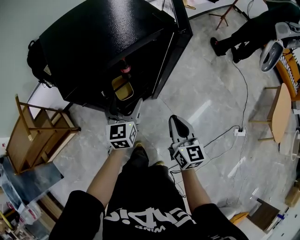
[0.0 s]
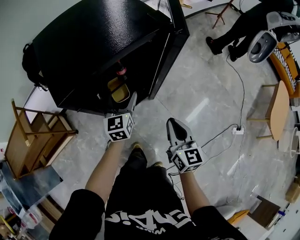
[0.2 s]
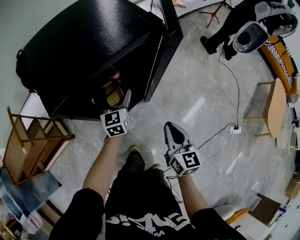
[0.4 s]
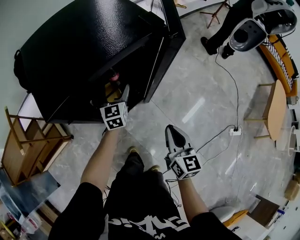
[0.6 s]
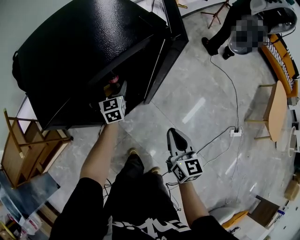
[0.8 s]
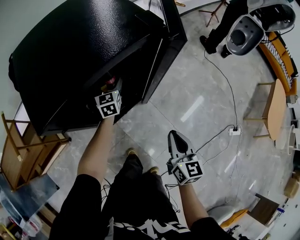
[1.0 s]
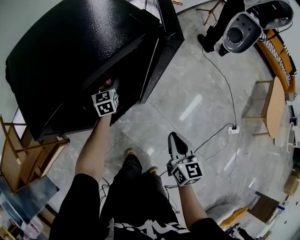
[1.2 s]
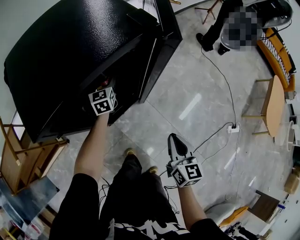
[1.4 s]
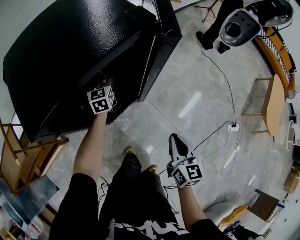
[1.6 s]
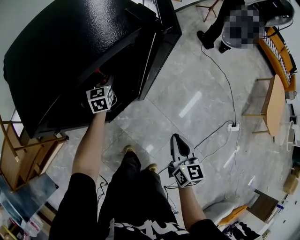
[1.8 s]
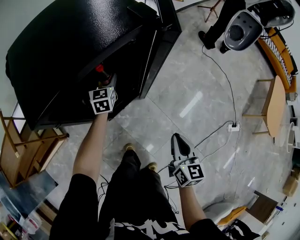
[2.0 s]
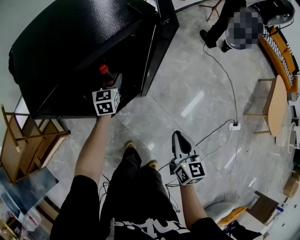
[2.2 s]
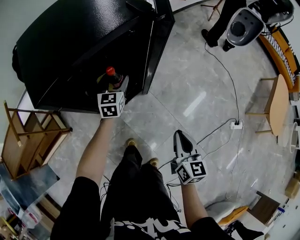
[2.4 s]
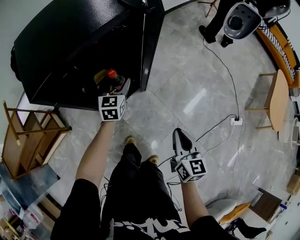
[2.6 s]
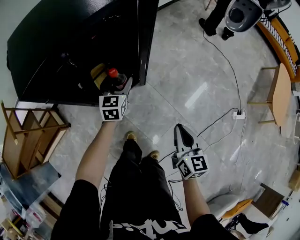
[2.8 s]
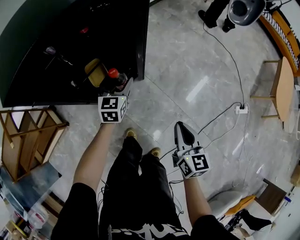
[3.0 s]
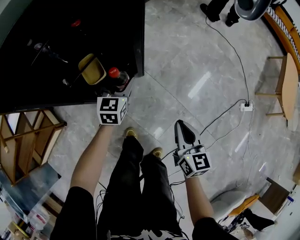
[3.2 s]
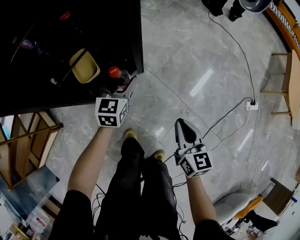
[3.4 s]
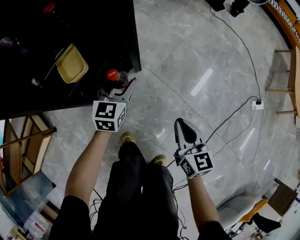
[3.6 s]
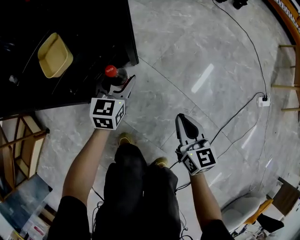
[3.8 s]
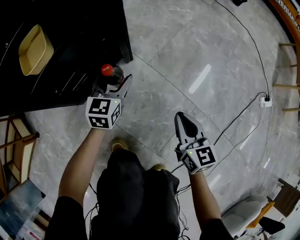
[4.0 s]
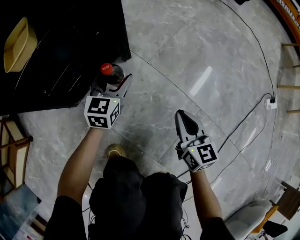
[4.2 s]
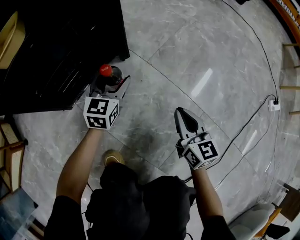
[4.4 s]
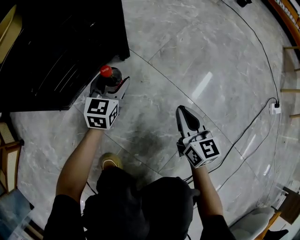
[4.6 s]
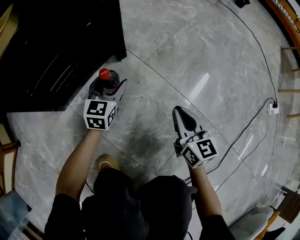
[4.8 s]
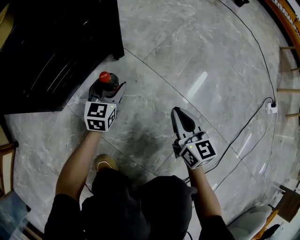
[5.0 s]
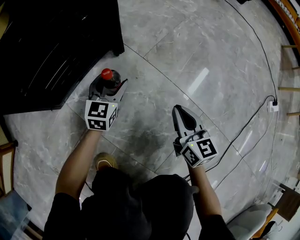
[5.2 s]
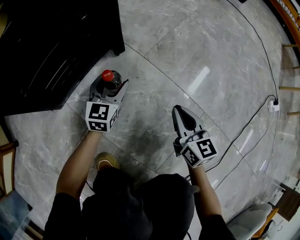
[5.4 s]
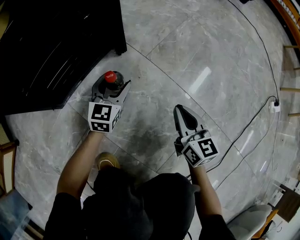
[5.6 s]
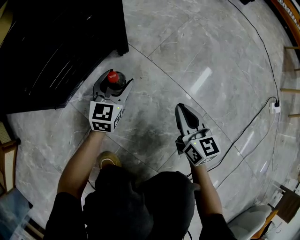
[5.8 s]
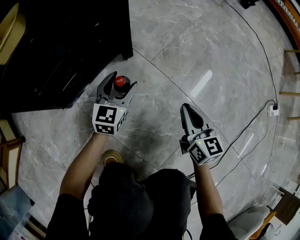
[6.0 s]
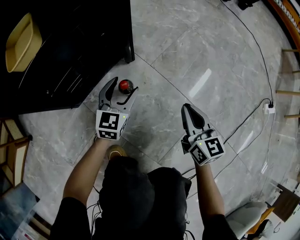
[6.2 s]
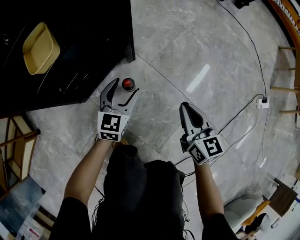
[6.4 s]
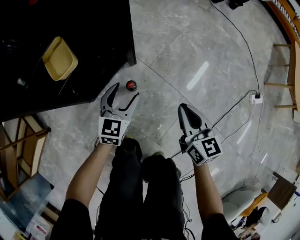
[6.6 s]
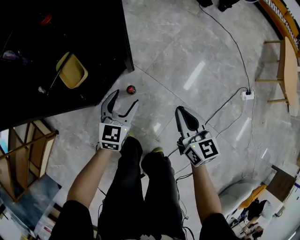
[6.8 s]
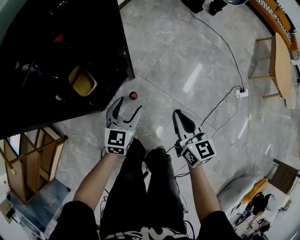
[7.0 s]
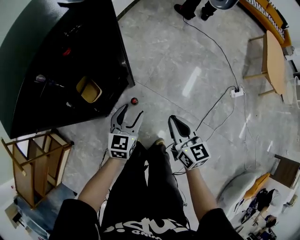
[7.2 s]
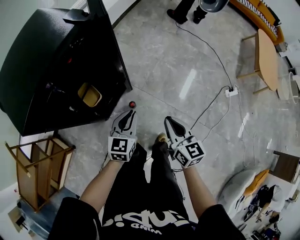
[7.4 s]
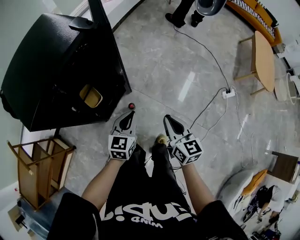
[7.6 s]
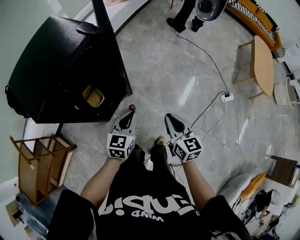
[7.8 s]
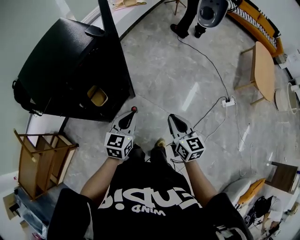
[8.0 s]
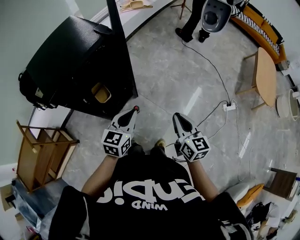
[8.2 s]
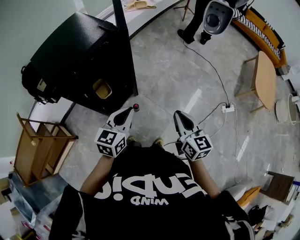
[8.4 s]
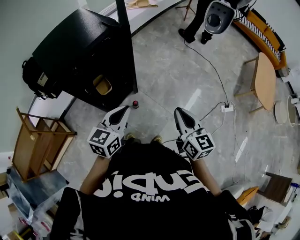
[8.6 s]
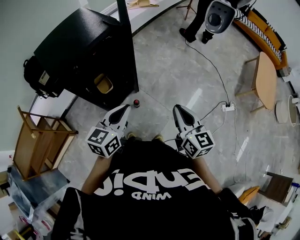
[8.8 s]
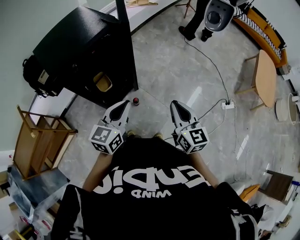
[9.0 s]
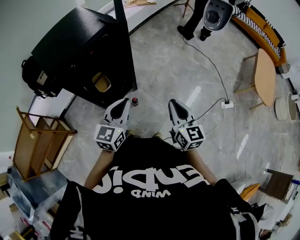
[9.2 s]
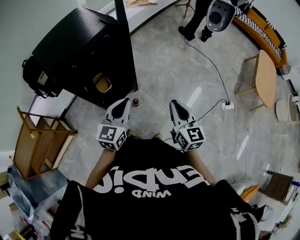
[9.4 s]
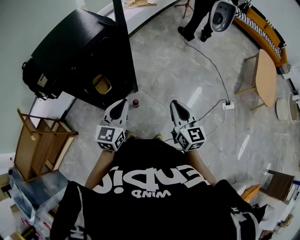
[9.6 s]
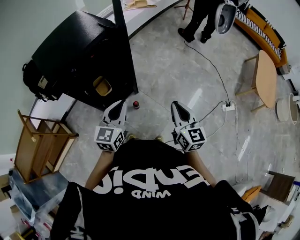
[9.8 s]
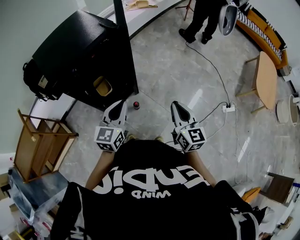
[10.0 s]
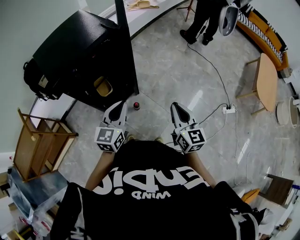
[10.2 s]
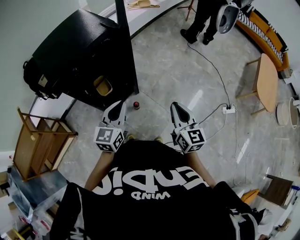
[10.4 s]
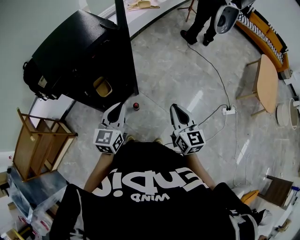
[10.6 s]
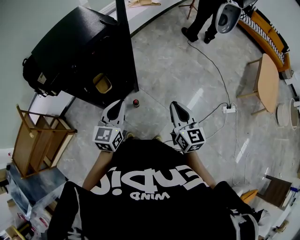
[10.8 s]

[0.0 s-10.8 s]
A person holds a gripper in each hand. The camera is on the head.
0.0 to 1.6 s: The left gripper heads forward and downward, covering some 25 cm, while the right gripper shifts about 10 cm downward and to the right.
1.6 to 3.0 s: The right gripper is displaced backward and to the right by roughly 10 cm. Meanwhile the left gripper is displaced backward and to the right by about 20 cm.
3.0 to 4.6 s: Both grippers move downward, some 60 cm.
4.6 to 6.2 s: The grippers both shift upward by about 10 cm.
6.2 to 7.8 s: The grippers both shift upward by about 60 cm. The left gripper closes its fingers.
7.8 to 9.2 s: The left gripper shifts roughly 15 cm upward and backward. The right gripper goes roughly 10 cm upward.
9.2 to 10.8 s: The grippers move only a little.

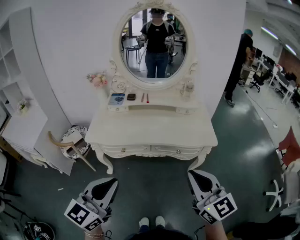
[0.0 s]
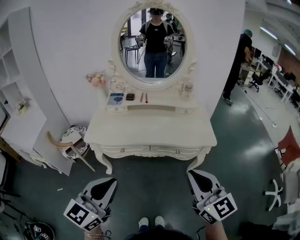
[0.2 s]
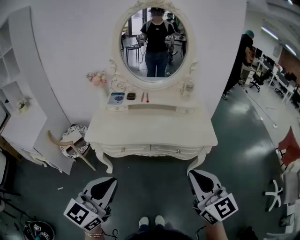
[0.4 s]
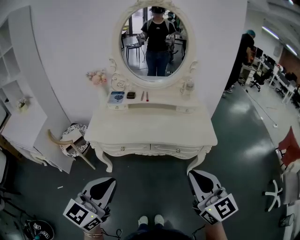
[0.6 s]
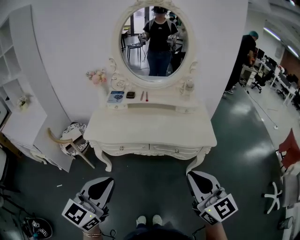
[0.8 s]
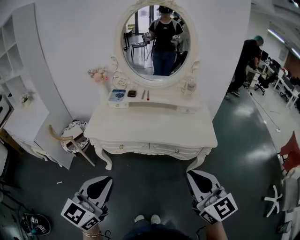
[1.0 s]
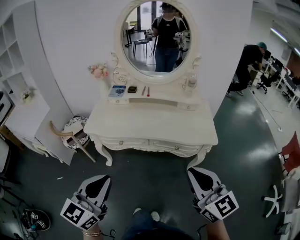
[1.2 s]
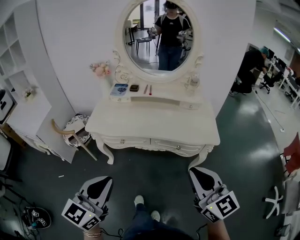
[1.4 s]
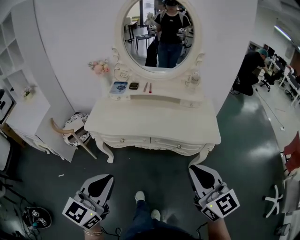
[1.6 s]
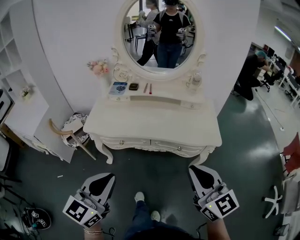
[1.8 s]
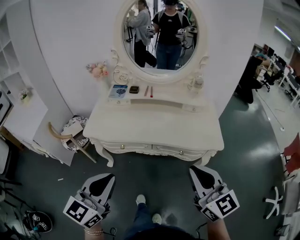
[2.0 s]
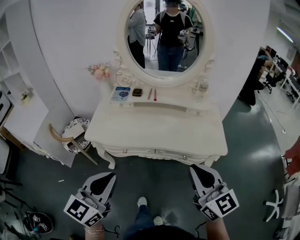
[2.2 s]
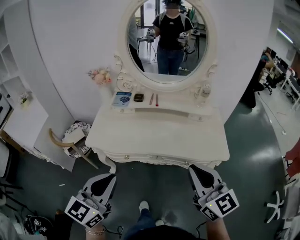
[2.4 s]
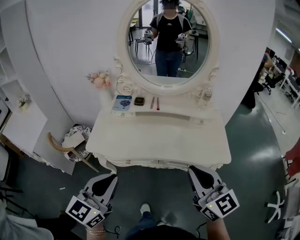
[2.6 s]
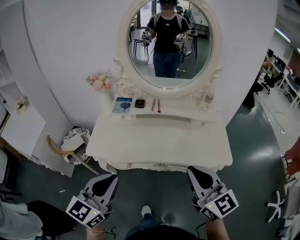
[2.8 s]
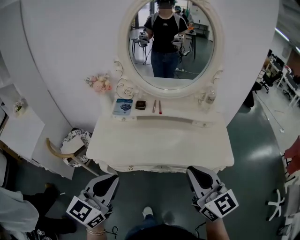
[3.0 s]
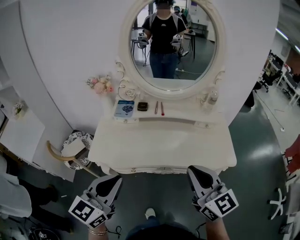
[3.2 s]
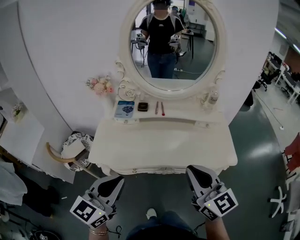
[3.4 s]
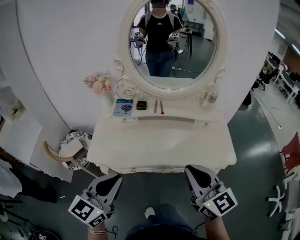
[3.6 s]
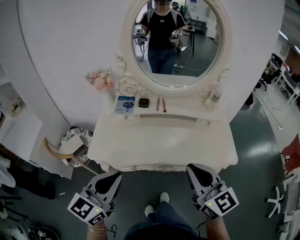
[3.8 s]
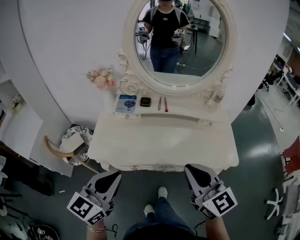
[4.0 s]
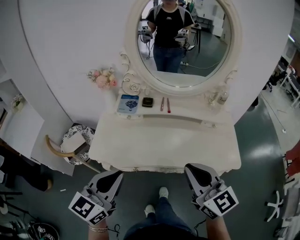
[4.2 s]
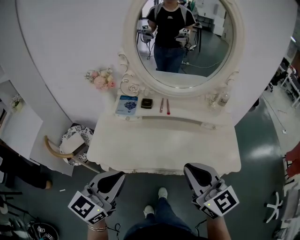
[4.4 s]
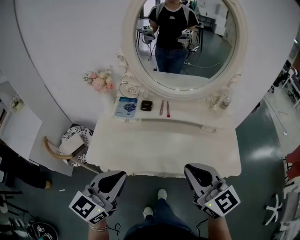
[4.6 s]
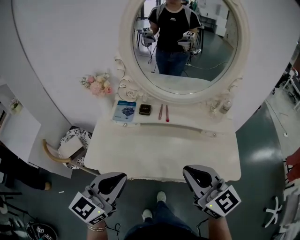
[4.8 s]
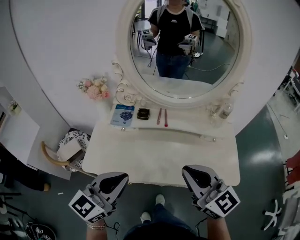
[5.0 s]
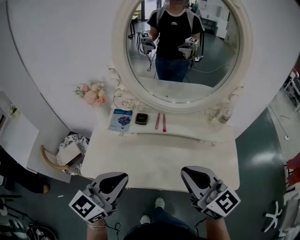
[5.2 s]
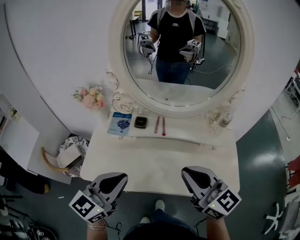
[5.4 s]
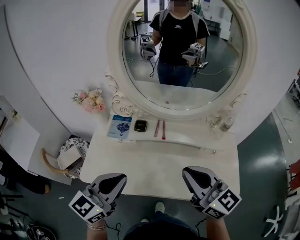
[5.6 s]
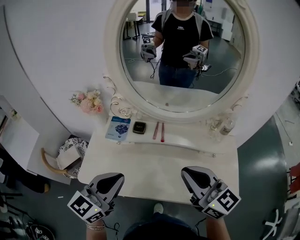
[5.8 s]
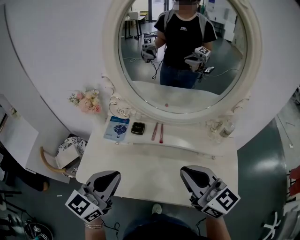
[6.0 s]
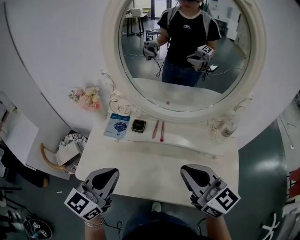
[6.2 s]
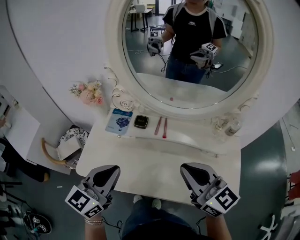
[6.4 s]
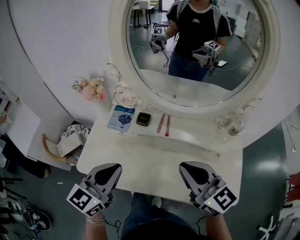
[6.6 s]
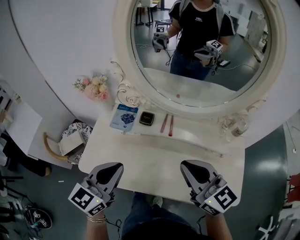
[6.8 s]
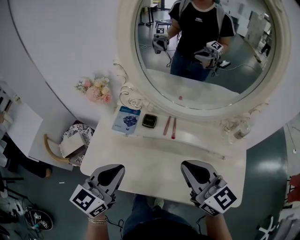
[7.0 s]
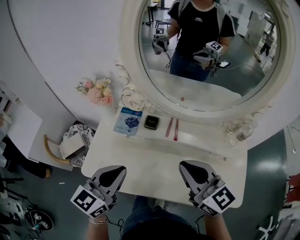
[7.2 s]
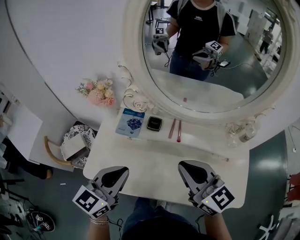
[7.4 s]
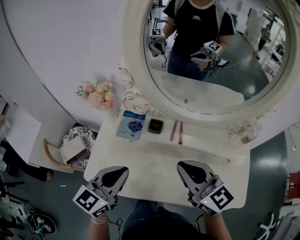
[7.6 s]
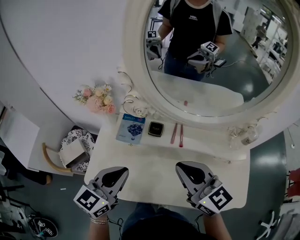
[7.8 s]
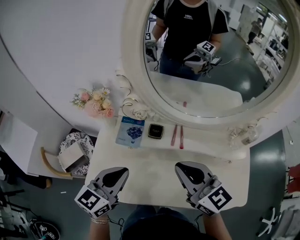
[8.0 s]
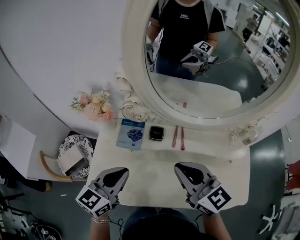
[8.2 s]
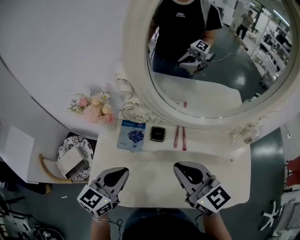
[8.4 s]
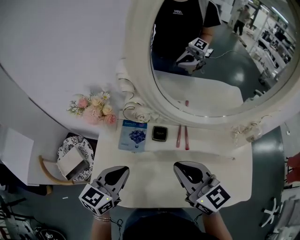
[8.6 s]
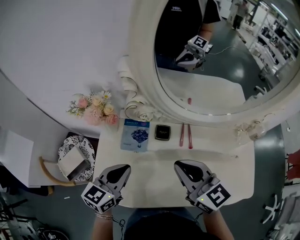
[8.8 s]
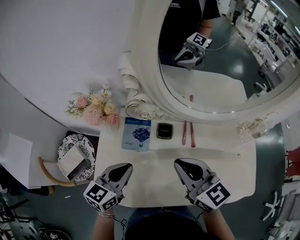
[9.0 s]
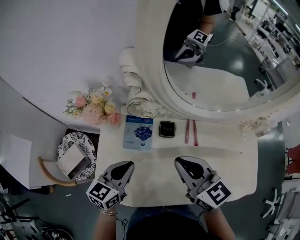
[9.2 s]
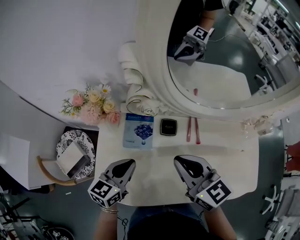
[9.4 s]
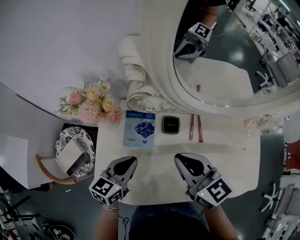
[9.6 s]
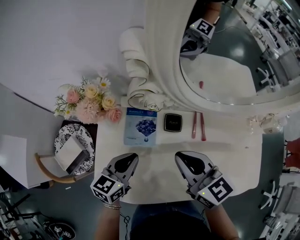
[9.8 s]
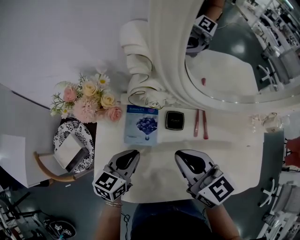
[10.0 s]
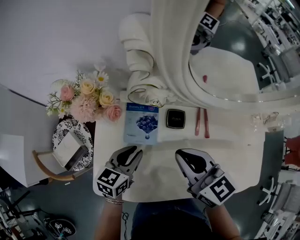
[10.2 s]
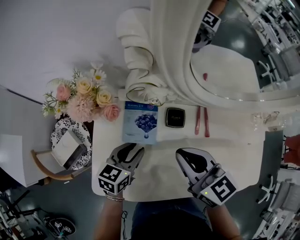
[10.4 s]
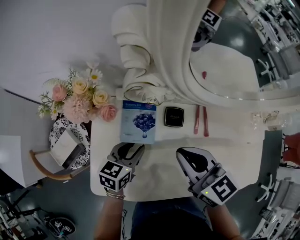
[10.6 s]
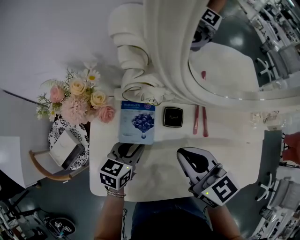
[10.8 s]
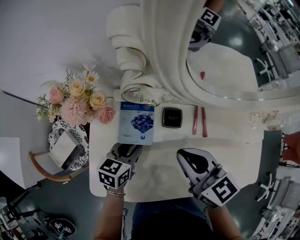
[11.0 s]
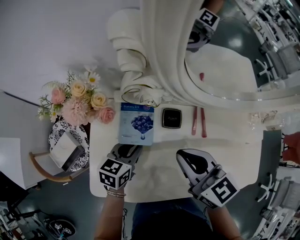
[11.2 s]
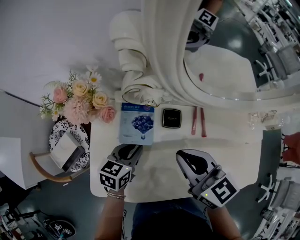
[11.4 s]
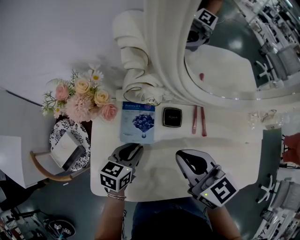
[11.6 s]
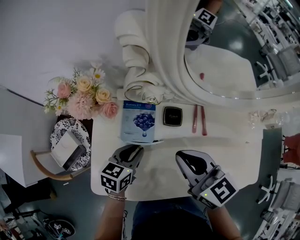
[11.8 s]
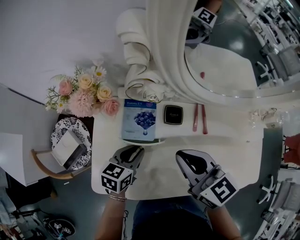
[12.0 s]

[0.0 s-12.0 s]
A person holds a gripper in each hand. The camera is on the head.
0.0 to 1.6 s: The grippers move only a little.
1.6 to 3.0 s: The right gripper heads forward and to the left, covering some 20 cm, while the left gripper shifts some 20 cm forward.
3.0 to 4.4 s: The two grippers go roughly 5 cm forward.
4.4 to 6.0 s: The two grippers go about 15 cm forward.
6.0 to 7.6 s: The right gripper goes approximately 10 cm to the left and forward. Meanwhile the left gripper moves forward, approximately 5 cm.
7.6 to 9.0 s: The right gripper goes some 10 cm forward, to the left and downward. Meanwhile the left gripper heads downward, forward and to the left, covering some 15 cm.
9.0 to 10.4 s: The left gripper moves downward and forward, about 10 cm, and opens its fingers; the right gripper moves about 5 cm.
10.4 to 12.0 s: The grippers make only small movements.

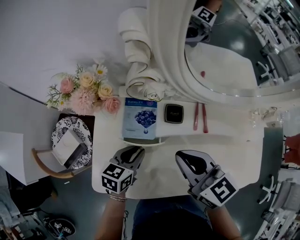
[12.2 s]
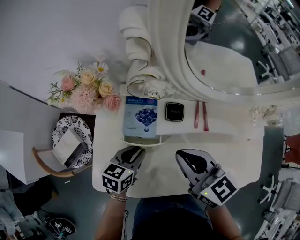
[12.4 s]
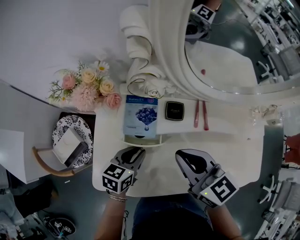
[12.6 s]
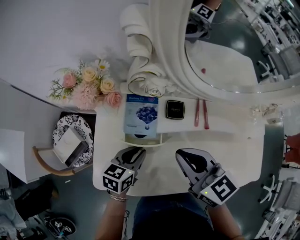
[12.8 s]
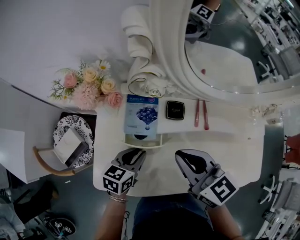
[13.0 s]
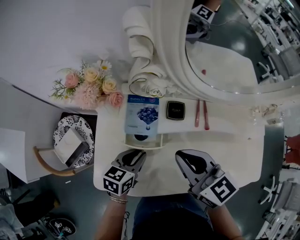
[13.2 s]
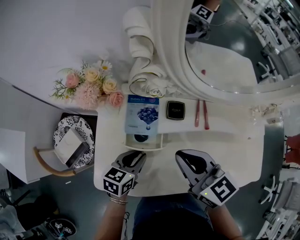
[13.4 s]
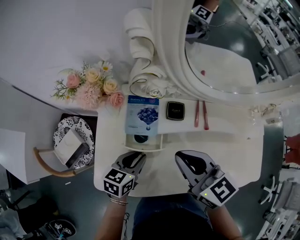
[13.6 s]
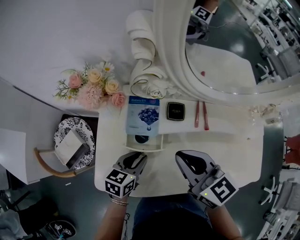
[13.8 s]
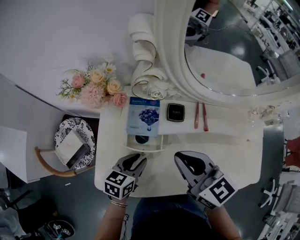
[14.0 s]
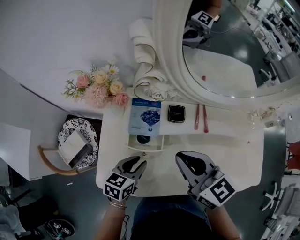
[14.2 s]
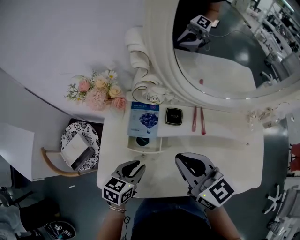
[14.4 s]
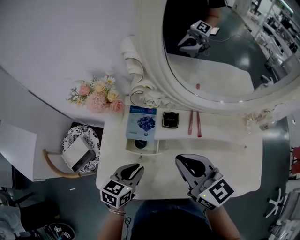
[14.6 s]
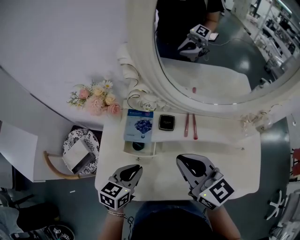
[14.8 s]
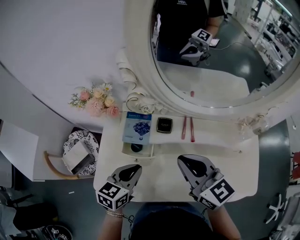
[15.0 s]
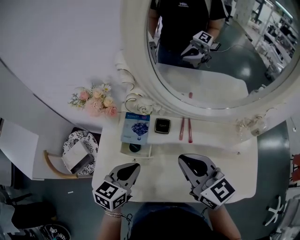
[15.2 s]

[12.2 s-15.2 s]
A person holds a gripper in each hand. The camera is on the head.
12.2 to 13.8 s: The grippers make only small movements.
13.8 to 15.2 s: The right gripper heads to the right and upward, covering approximately 10 cm, while the left gripper heads upward, covering about 10 cm, and closes its fingers.
